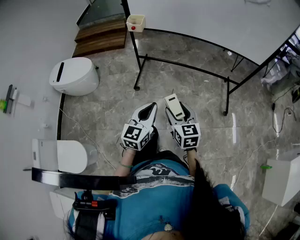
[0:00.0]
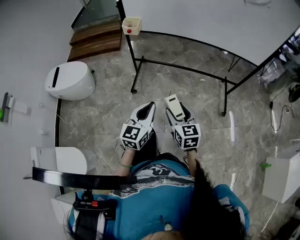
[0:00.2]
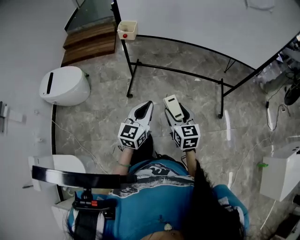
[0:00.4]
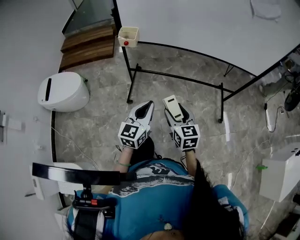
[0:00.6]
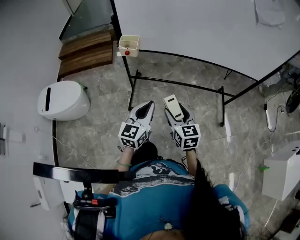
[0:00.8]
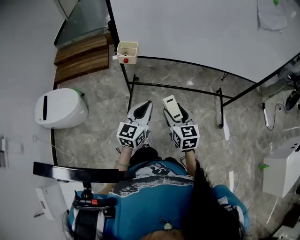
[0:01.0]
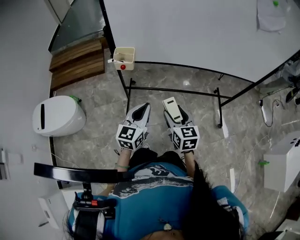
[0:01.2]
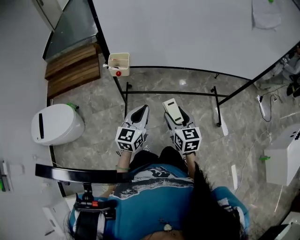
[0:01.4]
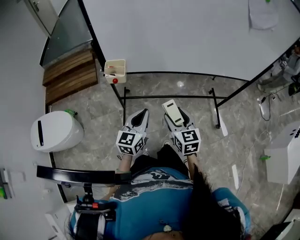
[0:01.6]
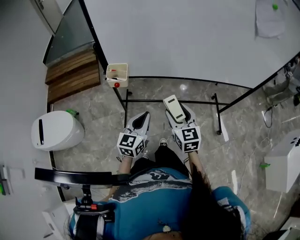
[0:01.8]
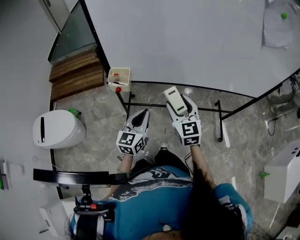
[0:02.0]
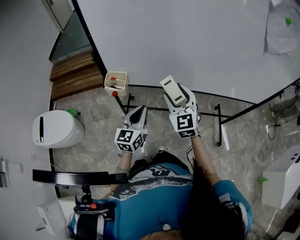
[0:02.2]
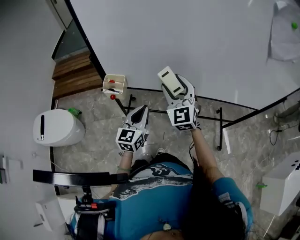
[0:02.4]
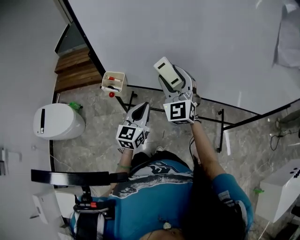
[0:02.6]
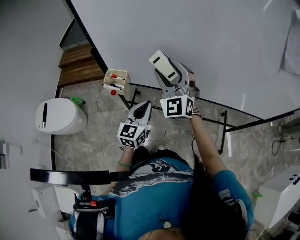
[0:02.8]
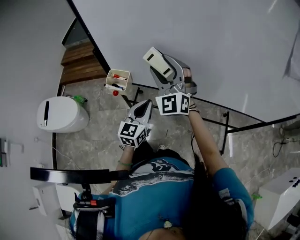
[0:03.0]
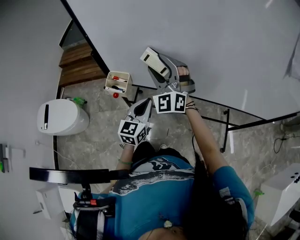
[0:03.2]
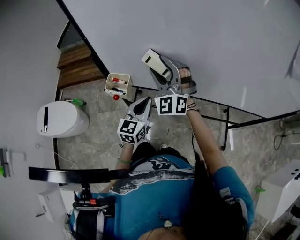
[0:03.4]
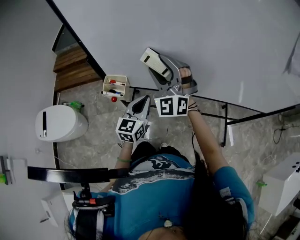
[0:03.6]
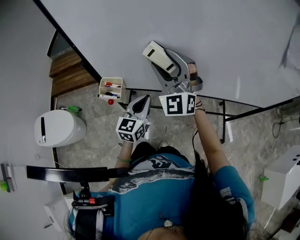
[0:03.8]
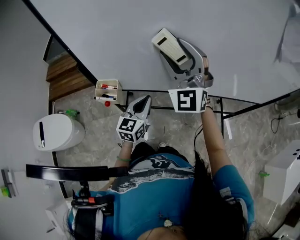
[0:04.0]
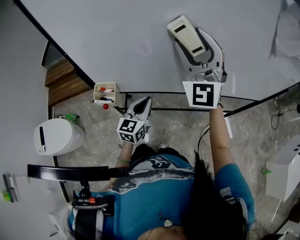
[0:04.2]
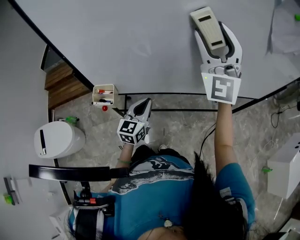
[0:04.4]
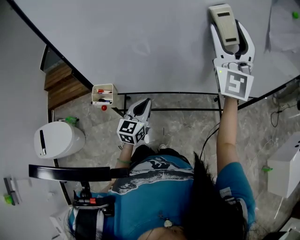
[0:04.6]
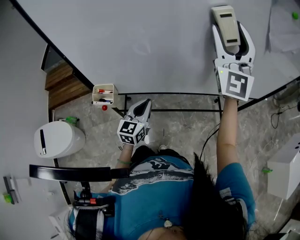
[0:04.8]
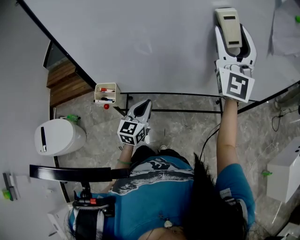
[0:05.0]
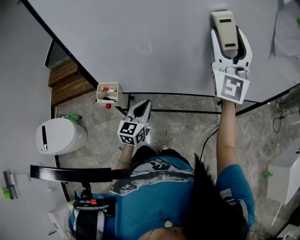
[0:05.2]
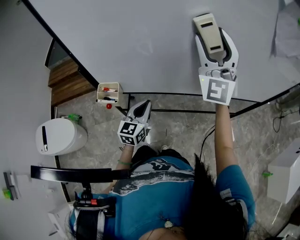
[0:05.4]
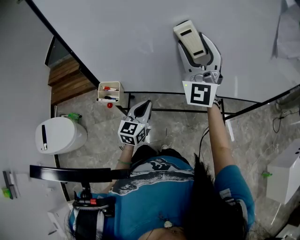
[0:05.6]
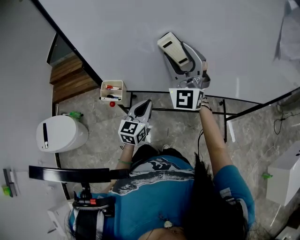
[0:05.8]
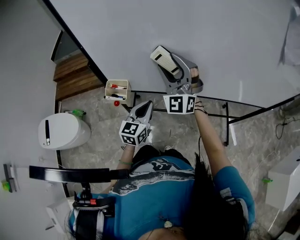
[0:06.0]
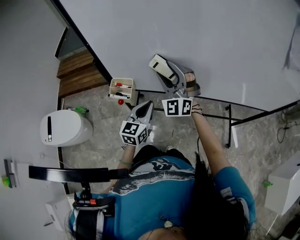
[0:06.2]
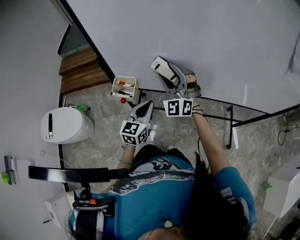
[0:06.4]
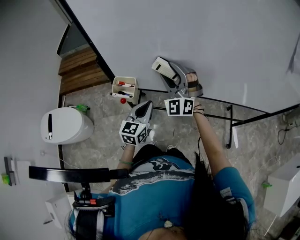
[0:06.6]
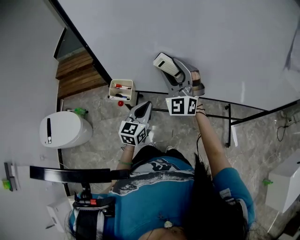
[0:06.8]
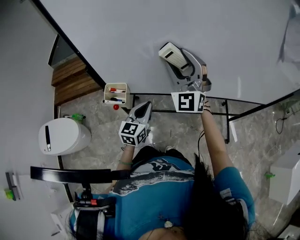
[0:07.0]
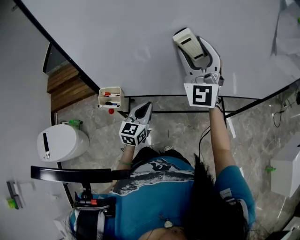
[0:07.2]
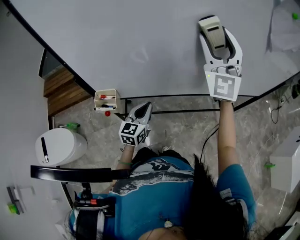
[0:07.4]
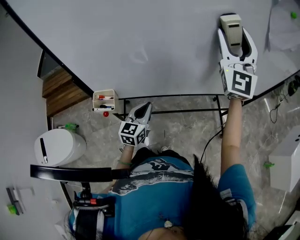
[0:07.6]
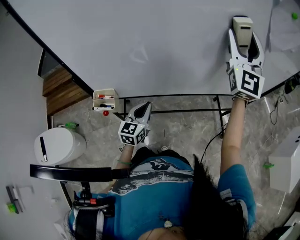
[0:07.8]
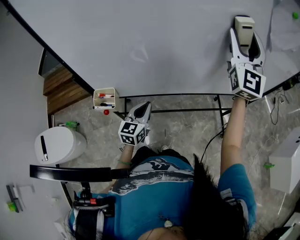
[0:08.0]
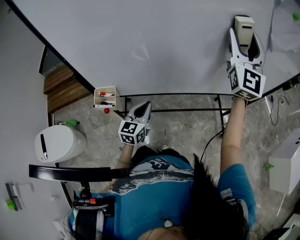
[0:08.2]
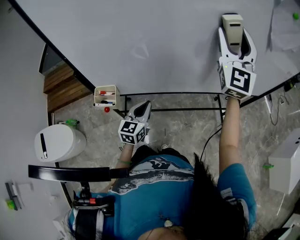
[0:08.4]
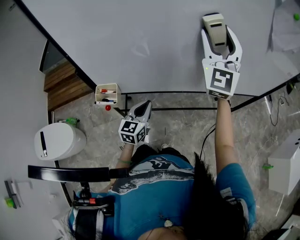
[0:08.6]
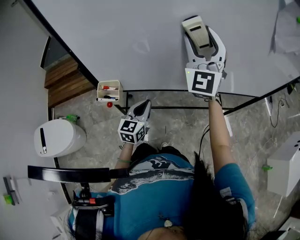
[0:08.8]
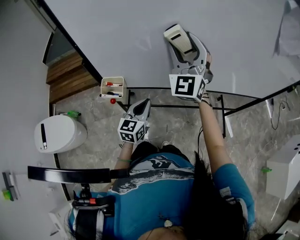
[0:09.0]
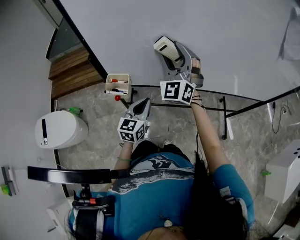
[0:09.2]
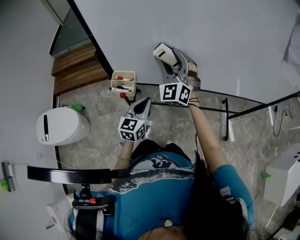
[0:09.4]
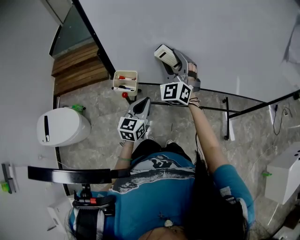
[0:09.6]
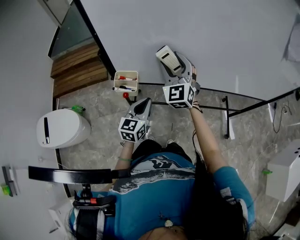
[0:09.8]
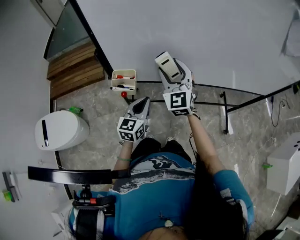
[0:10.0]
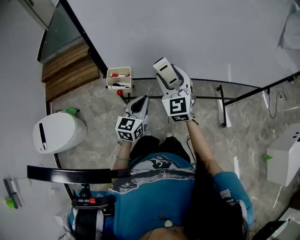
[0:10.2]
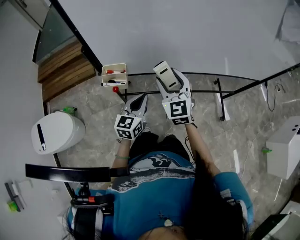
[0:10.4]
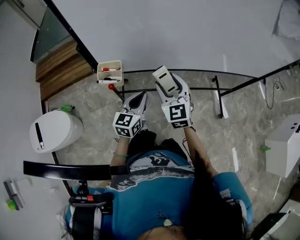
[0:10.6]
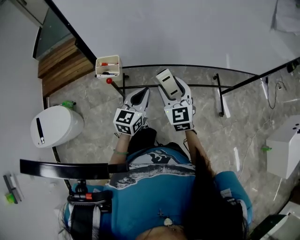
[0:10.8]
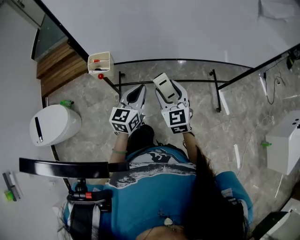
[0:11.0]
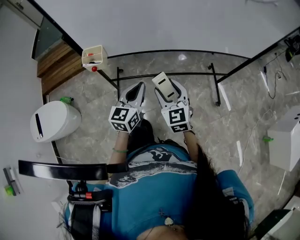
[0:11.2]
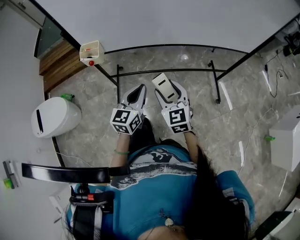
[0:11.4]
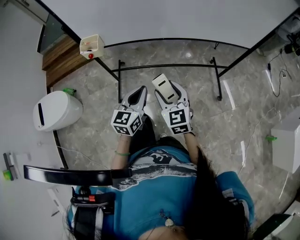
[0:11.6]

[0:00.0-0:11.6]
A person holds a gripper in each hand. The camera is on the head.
0.0 to 1.4 s: Both grippers travel together forward, some 35 cm.
1.4 to 2.8 s: The right gripper heads forward and upward, covering some 35 cm, and rolls counterclockwise, seen from behind, by roughly 50 degrees. The left gripper goes about 20 cm forward.
2.8 to 4.4 s: The left gripper travels forward by approximately 5 cm, while the right gripper goes approximately 25 cm upward and to the right, and changes its angle by roughly 30 degrees.
4.4 to 5.8 s: The right gripper goes some 15 cm to the left and downward.
5.8 to 7.2 s: The right gripper heads to the right, covering approximately 5 cm, and travels downward and back again, approximately 15 cm each way.
7.2 to 8.8 s: The right gripper reaches some 15 cm to the right, then returns.
8.8 to 10.2 s: The left gripper travels to the left by about 10 cm; the right gripper is displaced downward, to the left and backward by about 25 cm, and swivels some 30 degrees.
10.2 to 11.6 s: The right gripper goes approximately 35 cm backward and to the right. Meanwhile the left gripper shifts about 25 cm to the right and backward.

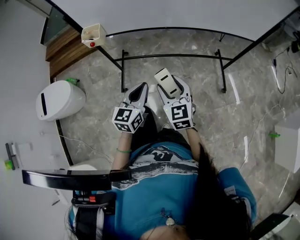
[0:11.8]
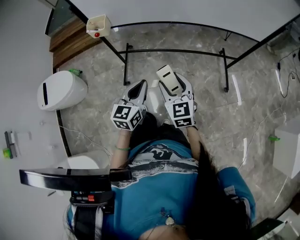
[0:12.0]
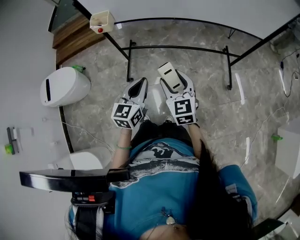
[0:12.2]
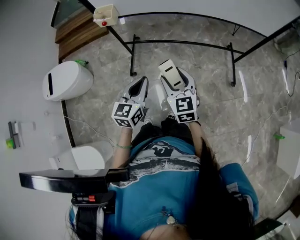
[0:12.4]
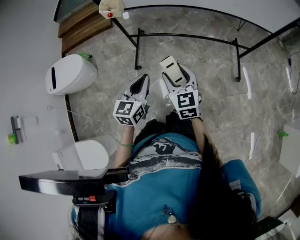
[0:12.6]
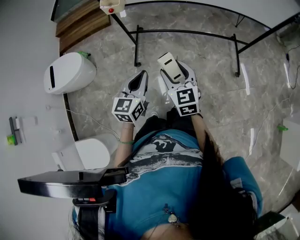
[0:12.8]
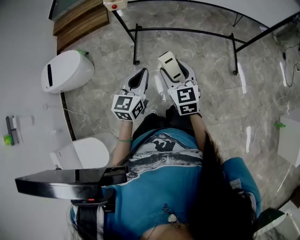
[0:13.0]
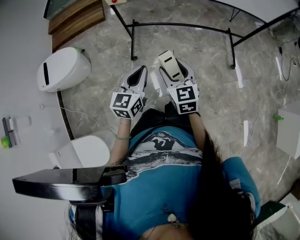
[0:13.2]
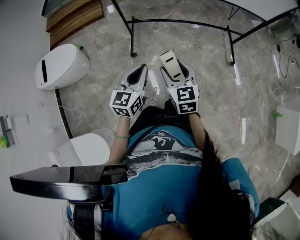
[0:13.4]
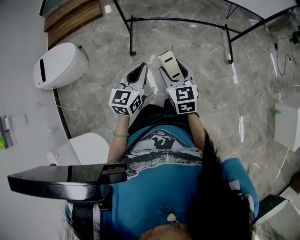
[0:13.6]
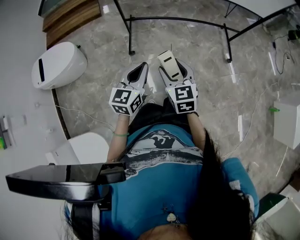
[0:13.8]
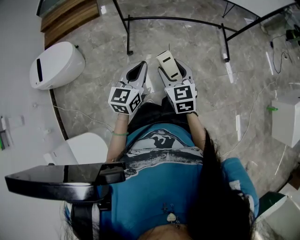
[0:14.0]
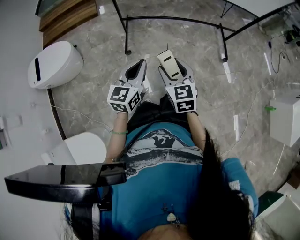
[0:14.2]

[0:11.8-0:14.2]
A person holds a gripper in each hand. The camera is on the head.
11.8 to 13.0 s: Both grippers move to the left and backward, some 20 cm.
13.0 to 14.2 s: Both grippers move backward and to the left, some 10 cm.

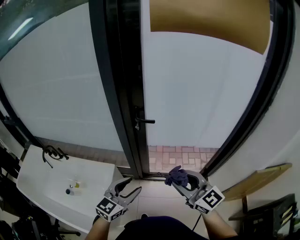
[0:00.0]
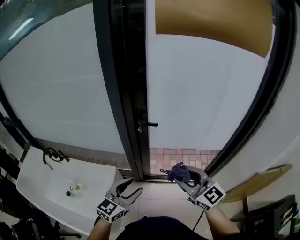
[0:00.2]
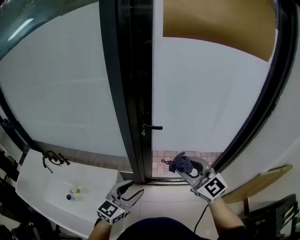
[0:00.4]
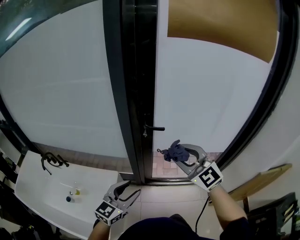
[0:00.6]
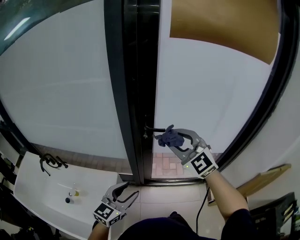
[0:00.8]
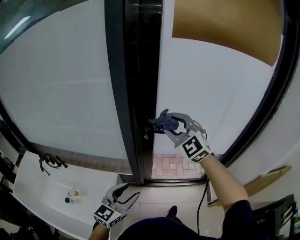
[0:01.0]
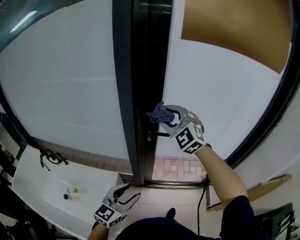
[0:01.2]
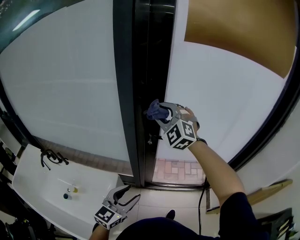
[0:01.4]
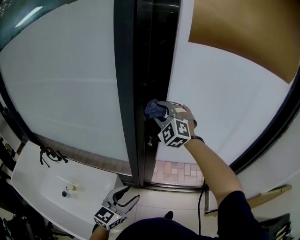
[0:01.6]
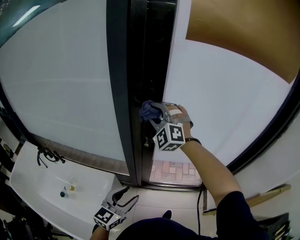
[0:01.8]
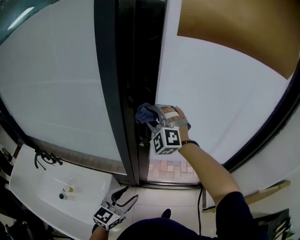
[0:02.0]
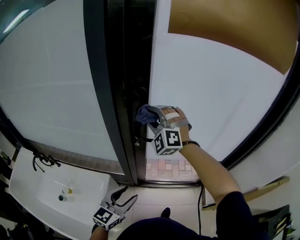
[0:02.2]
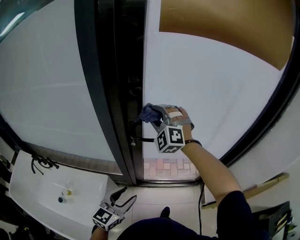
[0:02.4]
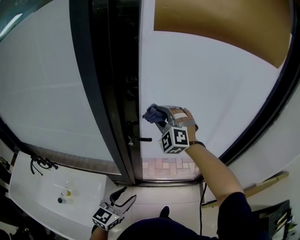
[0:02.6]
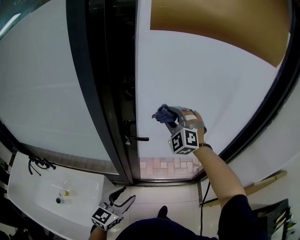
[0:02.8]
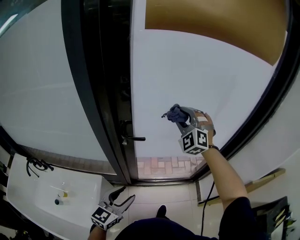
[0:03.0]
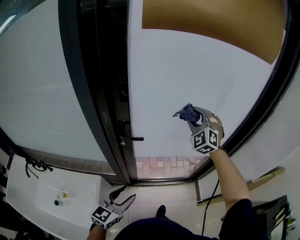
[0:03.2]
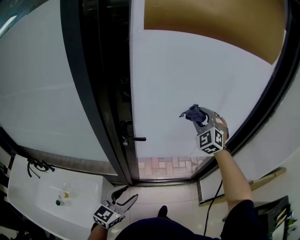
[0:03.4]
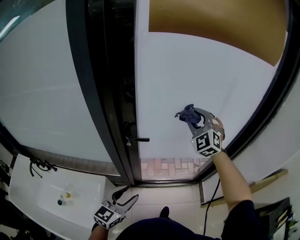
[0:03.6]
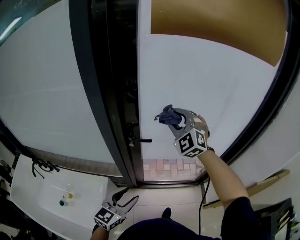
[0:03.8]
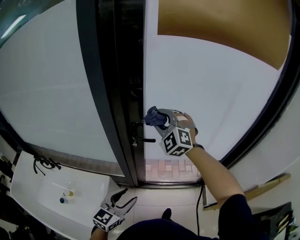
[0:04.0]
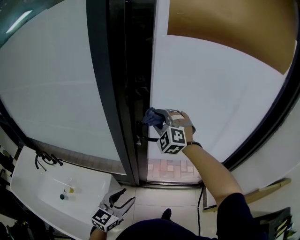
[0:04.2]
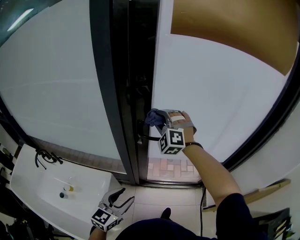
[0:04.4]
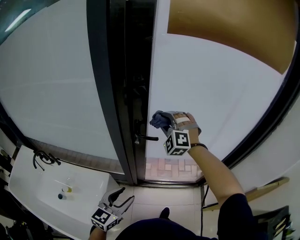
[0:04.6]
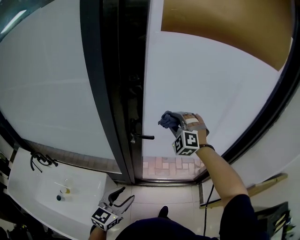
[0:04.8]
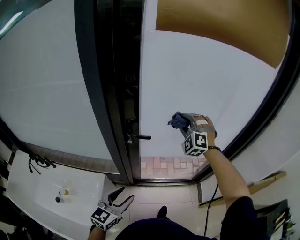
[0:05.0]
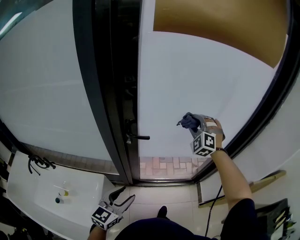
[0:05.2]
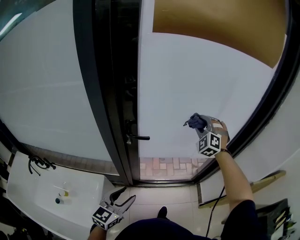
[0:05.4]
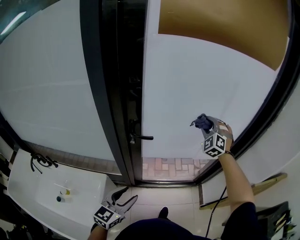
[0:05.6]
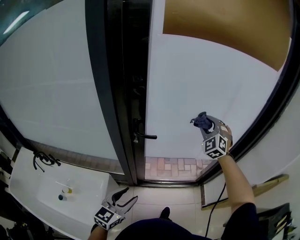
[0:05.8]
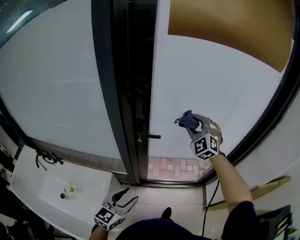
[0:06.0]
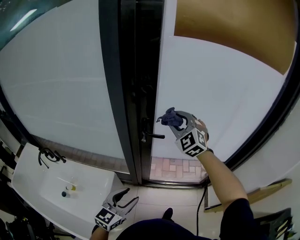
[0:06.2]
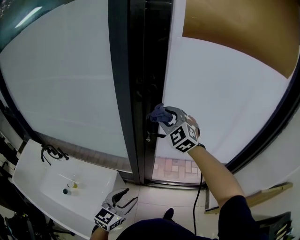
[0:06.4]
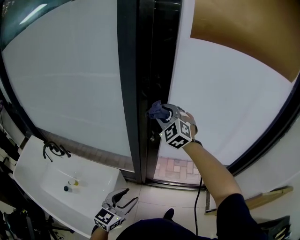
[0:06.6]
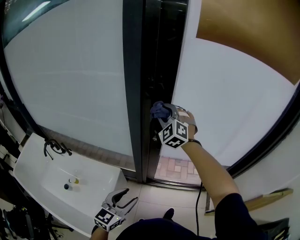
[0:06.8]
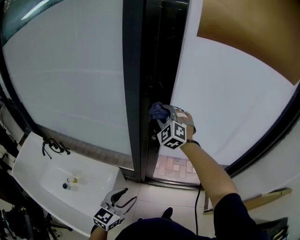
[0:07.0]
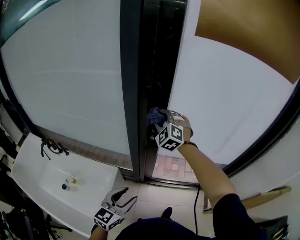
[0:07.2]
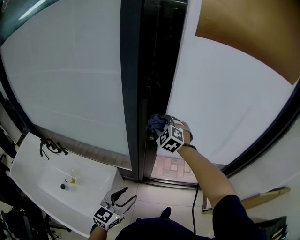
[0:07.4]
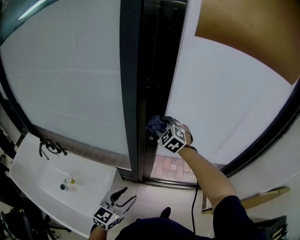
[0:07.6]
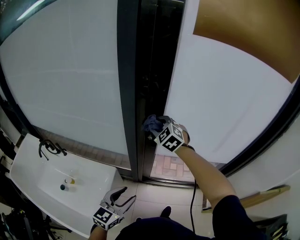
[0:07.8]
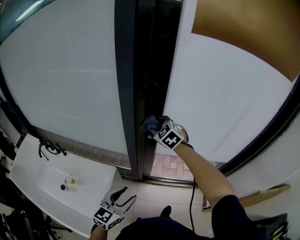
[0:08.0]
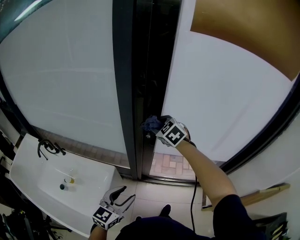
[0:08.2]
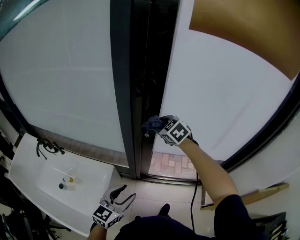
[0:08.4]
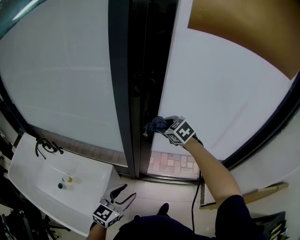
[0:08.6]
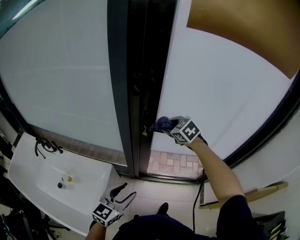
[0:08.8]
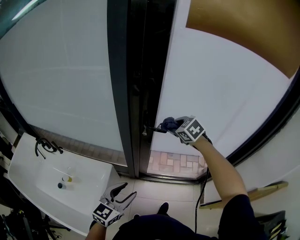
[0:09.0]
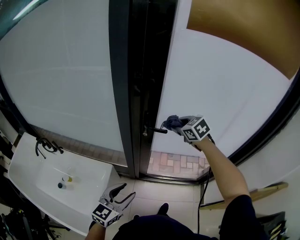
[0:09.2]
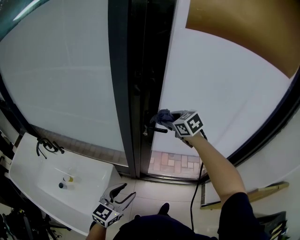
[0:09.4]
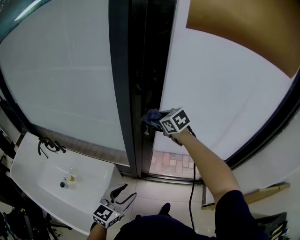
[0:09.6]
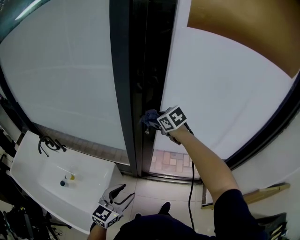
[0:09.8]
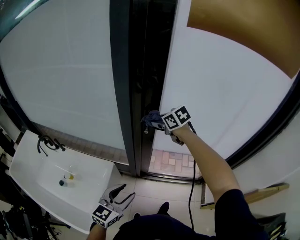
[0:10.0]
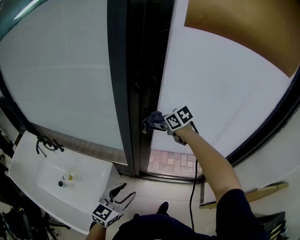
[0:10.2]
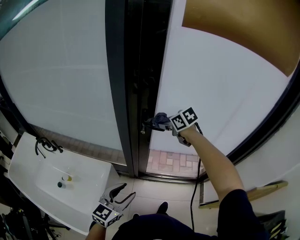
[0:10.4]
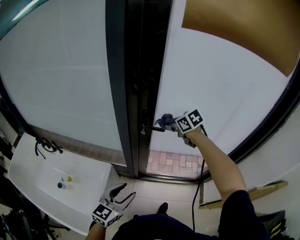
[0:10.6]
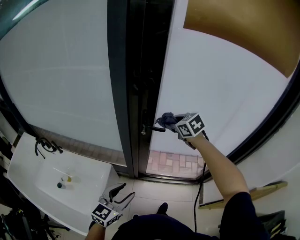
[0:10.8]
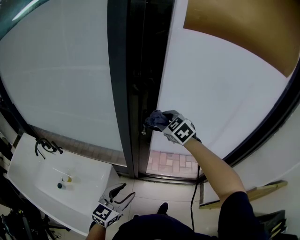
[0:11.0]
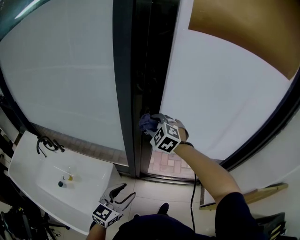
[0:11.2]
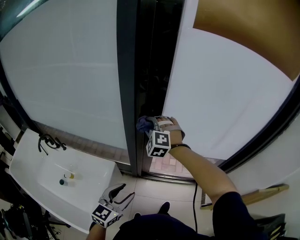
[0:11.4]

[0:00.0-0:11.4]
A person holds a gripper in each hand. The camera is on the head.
0.0 to 1.4 s: The left gripper shifts approximately 10 cm to the left and forward. The right gripper is displaced forward and to the left by approximately 35 cm, and twists approximately 50 degrees counterclockwise, seen from behind.
1.4 to 2.8 s: The left gripper heads to the right, covering roughly 5 cm. Meanwhile the right gripper heads to the right, covering approximately 15 cm.
2.8 to 4.2 s: The right gripper goes about 10 cm to the left.
4.2 to 5.6 s: The right gripper goes about 30 cm to the right, and changes its angle by roughly 30 degrees.
5.6 to 7.2 s: The right gripper goes about 35 cm to the left, and changes its angle by roughly 30 degrees. The left gripper moves to the left, approximately 5 cm.
7.2 to 8.6 s: The right gripper moves to the right and downward, some 10 cm, and swivels approximately 40 degrees.
8.6 to 10.0 s: The right gripper travels to the right and back again, approximately 5 cm each way, and turns by about 20 degrees.
10.0 to 11.4 s: The right gripper travels to the left by some 5 cm, and twists roughly 60 degrees counterclockwise, seen from behind.
